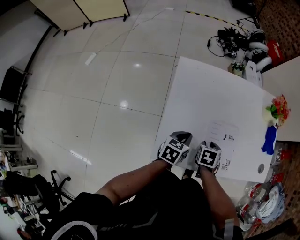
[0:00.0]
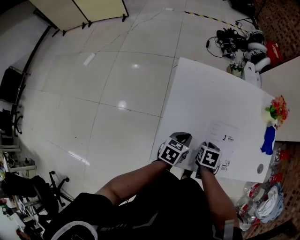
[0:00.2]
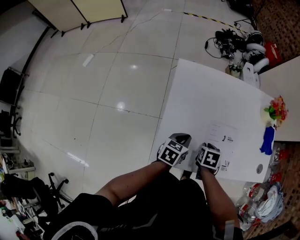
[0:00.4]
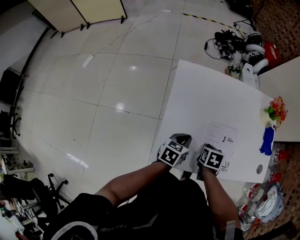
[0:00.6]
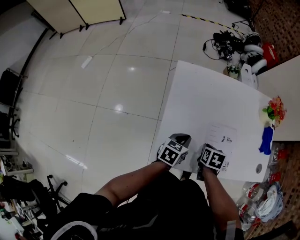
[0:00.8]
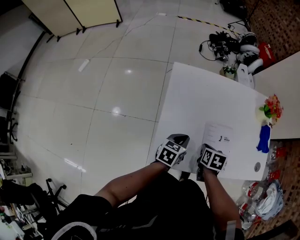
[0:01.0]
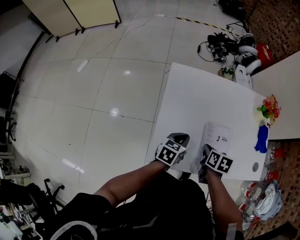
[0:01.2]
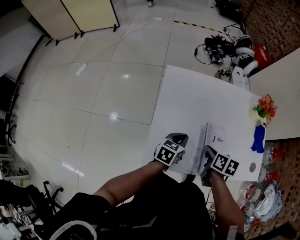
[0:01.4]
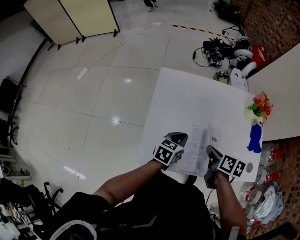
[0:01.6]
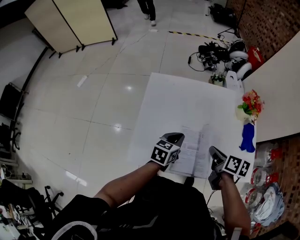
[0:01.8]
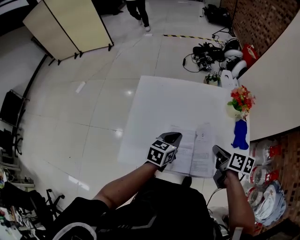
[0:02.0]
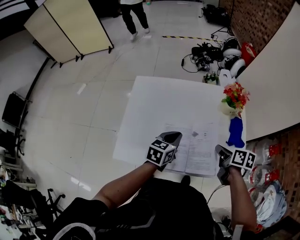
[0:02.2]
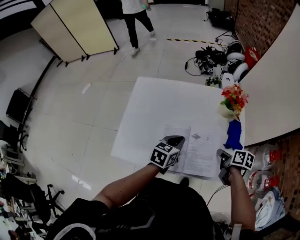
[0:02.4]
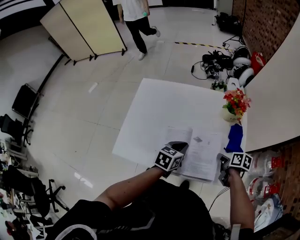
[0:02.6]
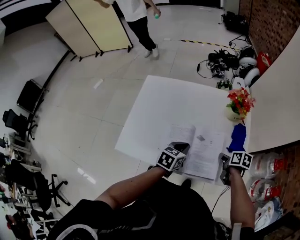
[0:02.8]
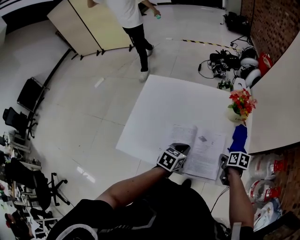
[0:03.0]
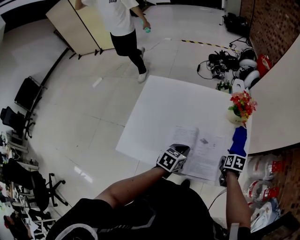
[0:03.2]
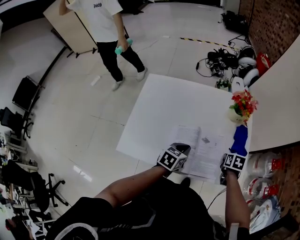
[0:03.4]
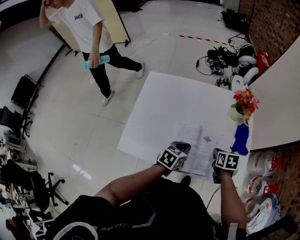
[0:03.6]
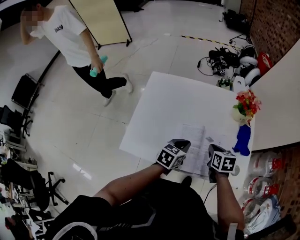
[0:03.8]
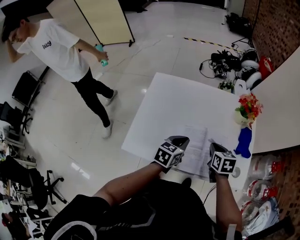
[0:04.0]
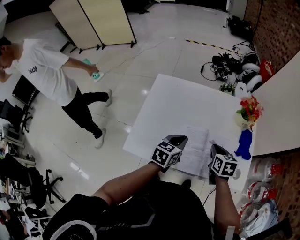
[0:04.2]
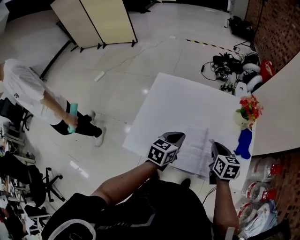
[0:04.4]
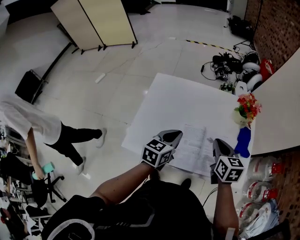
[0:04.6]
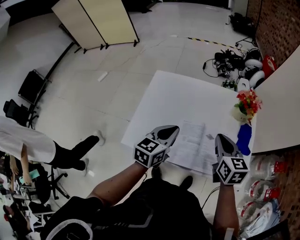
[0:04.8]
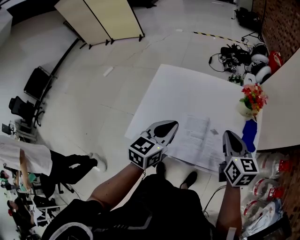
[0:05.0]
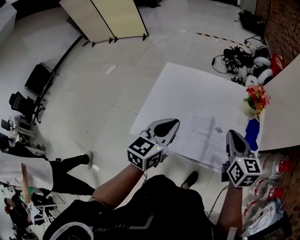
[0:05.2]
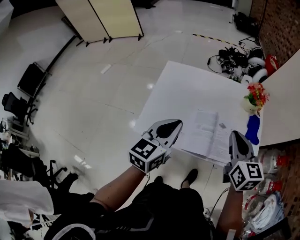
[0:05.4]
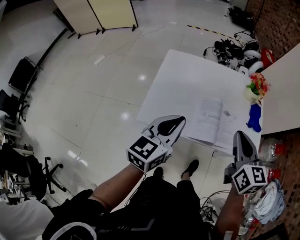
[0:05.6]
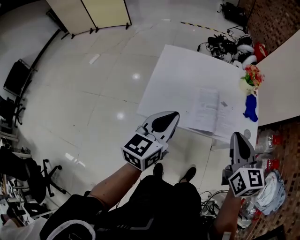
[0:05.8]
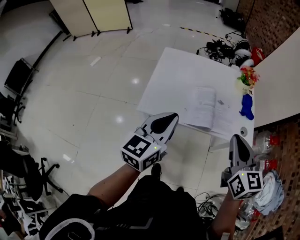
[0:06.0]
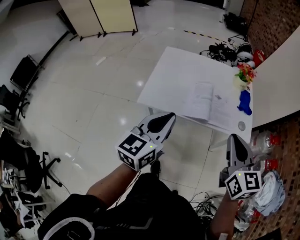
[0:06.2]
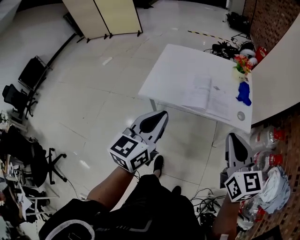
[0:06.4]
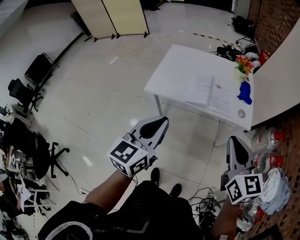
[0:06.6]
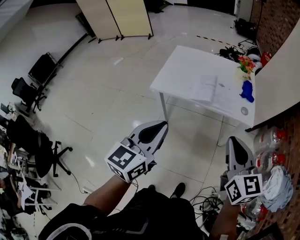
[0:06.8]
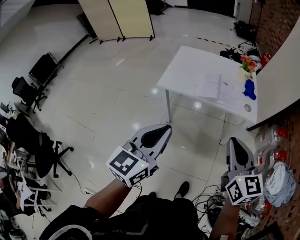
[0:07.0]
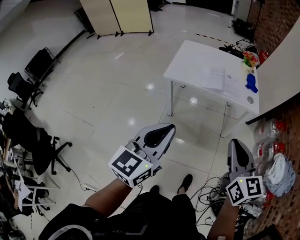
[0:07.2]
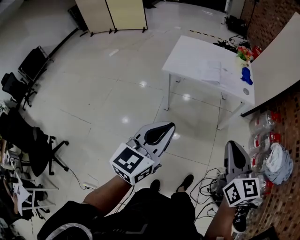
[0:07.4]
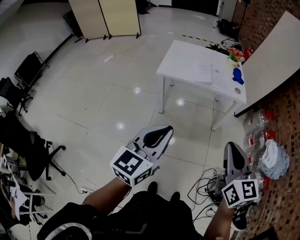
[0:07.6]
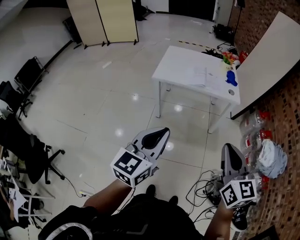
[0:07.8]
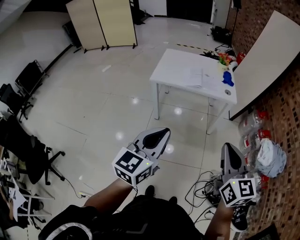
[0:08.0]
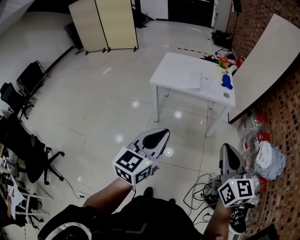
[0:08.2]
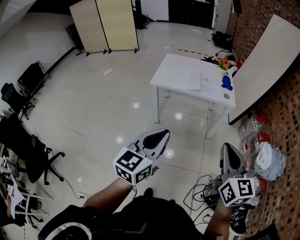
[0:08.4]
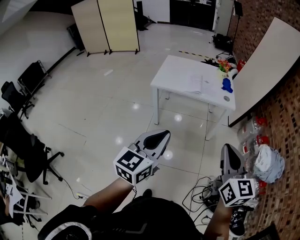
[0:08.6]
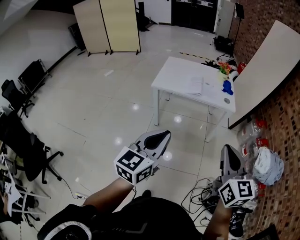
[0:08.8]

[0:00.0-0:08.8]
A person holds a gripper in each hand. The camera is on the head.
0:00.0 to 0:01.4: The right gripper goes roughly 10 cm upward, swivels approximately 30 degrees, and closes its fingers.
0:01.4 to 0:03.0: Both grippers move to the right, approximately 30 cm.
0:03.0 to 0:04.4: The left gripper heads to the left and upward, covering roughly 15 cm. Meanwhile the right gripper is displaced to the left and upward by some 20 cm, and turns by approximately 30 degrees.
0:04.4 to 0:05.8: The left gripper travels backward, upward and to the left by about 25 cm, and changes its angle by about 20 degrees, while the right gripper moves backward and upward, about 25 cm, and swivels approximately 20 degrees.
0:05.8 to 0:07.4: Both grippers are carried backward, some 50 cm.
0:07.4 to 0:08.8: The right gripper heads to the right, backward and upward, covering roughly 15 cm, while the left gripper is displaced to the right and backward by approximately 10 cm.

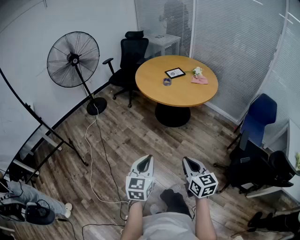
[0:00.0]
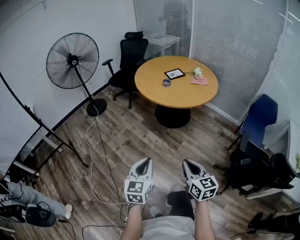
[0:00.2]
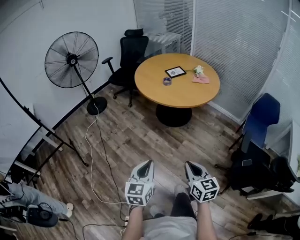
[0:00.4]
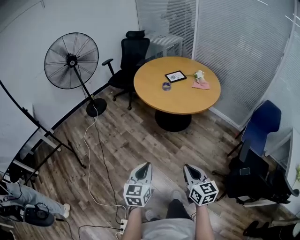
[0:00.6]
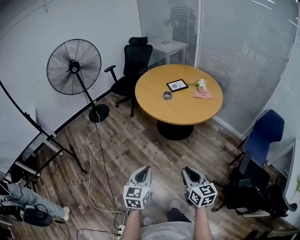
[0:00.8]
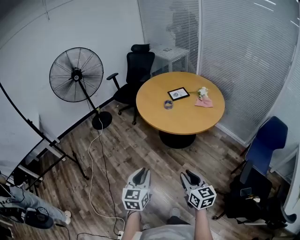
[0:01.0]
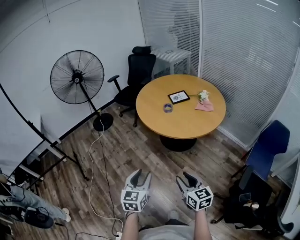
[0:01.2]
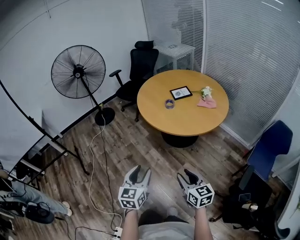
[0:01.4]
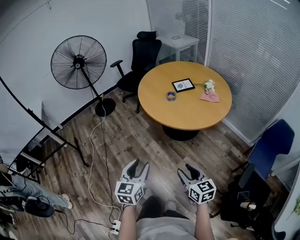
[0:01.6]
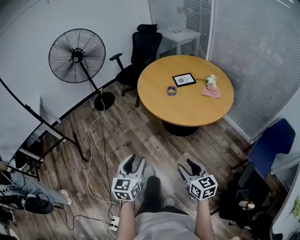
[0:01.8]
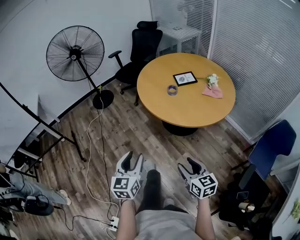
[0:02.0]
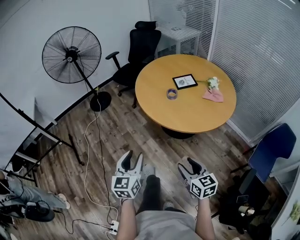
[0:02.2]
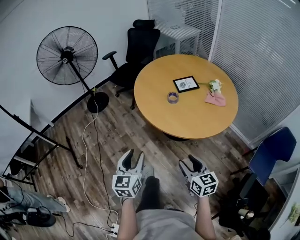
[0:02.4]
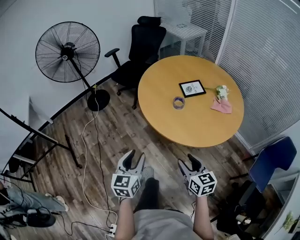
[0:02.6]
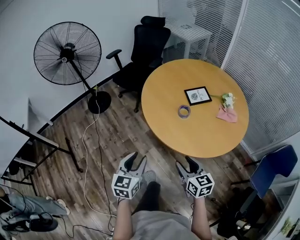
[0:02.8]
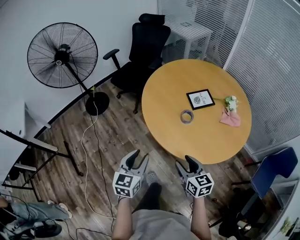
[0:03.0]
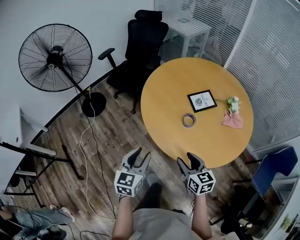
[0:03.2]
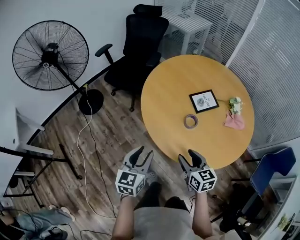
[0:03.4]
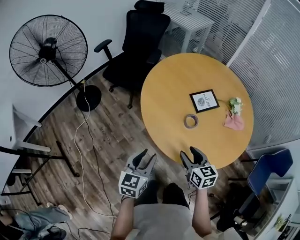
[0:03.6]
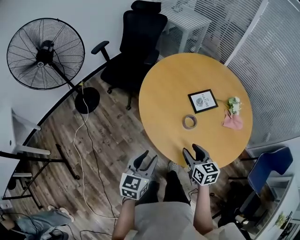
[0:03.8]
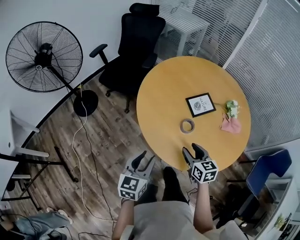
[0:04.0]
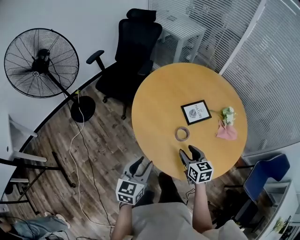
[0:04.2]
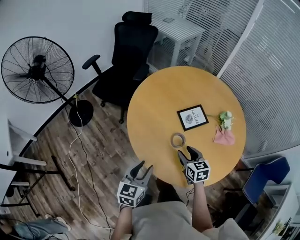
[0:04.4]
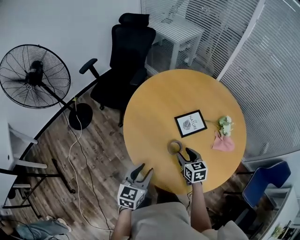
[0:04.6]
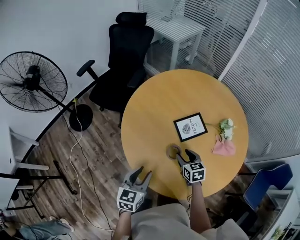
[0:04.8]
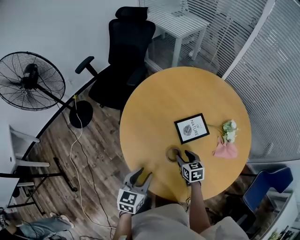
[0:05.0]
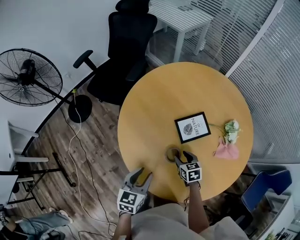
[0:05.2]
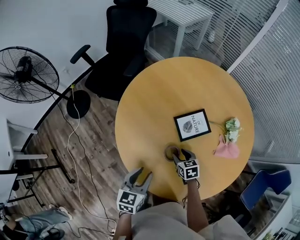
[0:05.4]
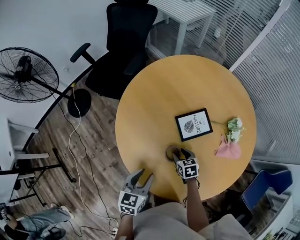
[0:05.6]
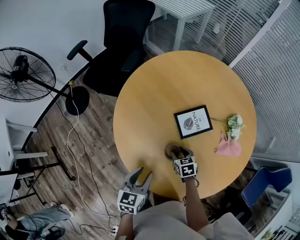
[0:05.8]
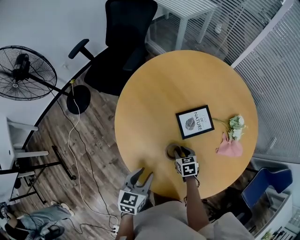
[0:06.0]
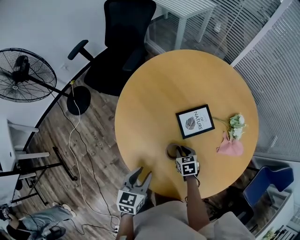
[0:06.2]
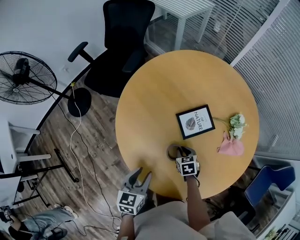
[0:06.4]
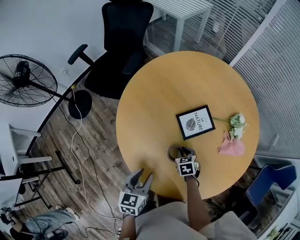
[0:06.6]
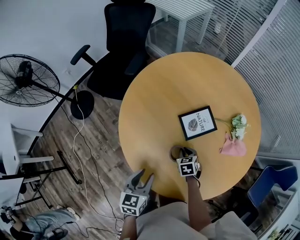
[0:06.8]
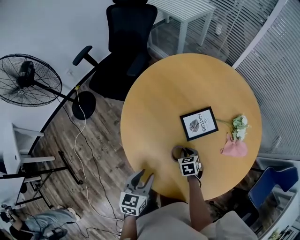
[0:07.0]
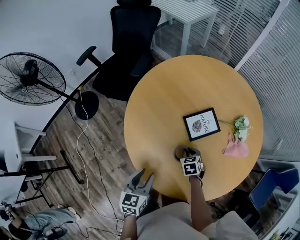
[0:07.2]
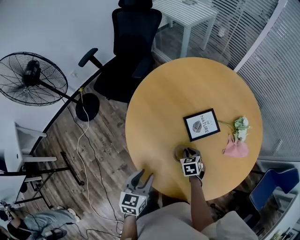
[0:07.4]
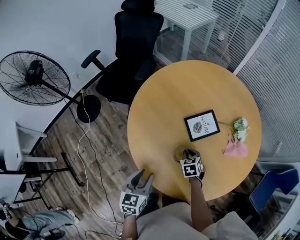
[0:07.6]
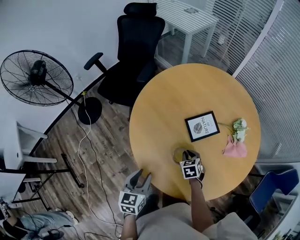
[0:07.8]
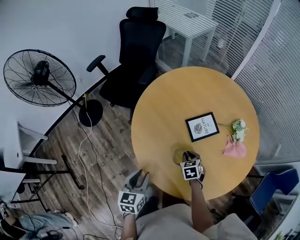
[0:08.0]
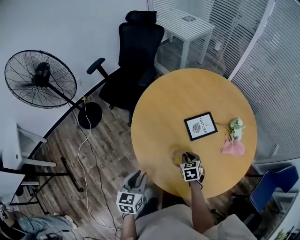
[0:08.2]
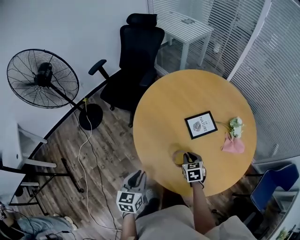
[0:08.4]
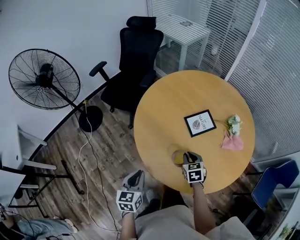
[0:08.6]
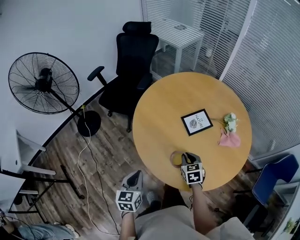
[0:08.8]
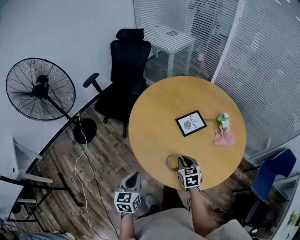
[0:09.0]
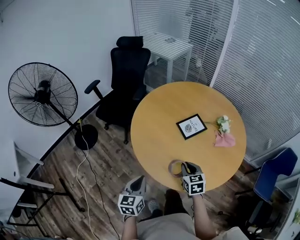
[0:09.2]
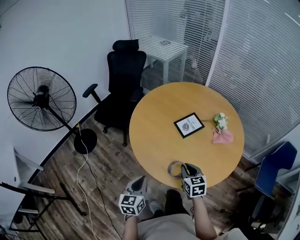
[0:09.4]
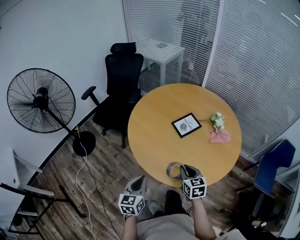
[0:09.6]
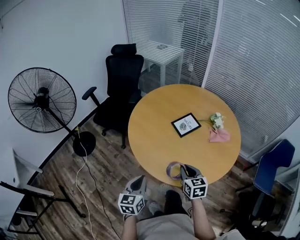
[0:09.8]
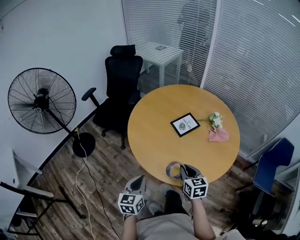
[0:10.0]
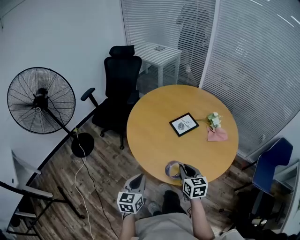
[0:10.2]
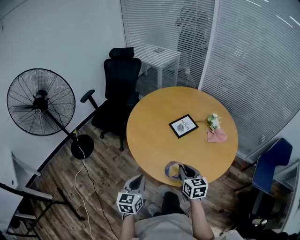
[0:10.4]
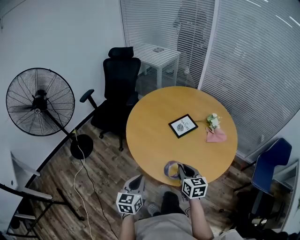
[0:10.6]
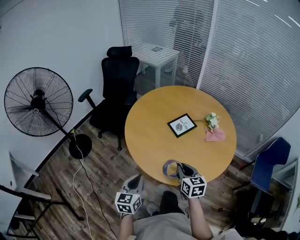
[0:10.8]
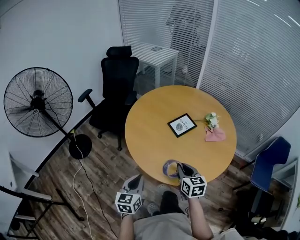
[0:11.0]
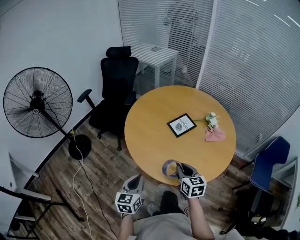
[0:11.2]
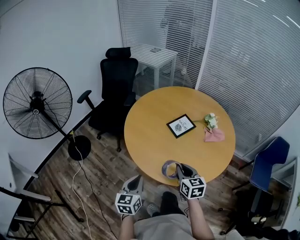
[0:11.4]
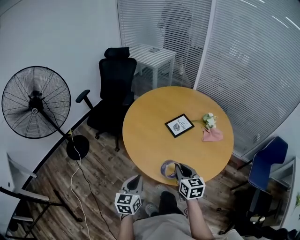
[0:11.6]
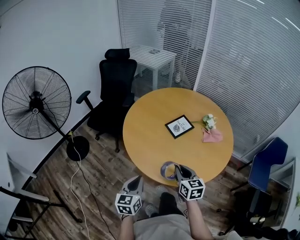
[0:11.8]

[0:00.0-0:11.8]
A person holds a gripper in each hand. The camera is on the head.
0:00.0 to 0:01.4: Both grippers travel together forward and to the right, approximately 25 cm. The right gripper opens up. Meanwhile the left gripper opens its fingers.
0:01.4 to 0:03.0: Both grippers are carried forward, roughly 40 cm.
0:03.0 to 0:04.4: The left gripper travels forward by approximately 15 cm, while the right gripper heads forward, covering roughly 25 cm.
0:04.4 to 0:06.0: The left gripper travels downward, forward and to the right by roughly 15 cm. The right gripper heads downward and forward, covering some 20 cm, and turns by approximately 20 degrees.
0:06.0 to 0:07.4: The right gripper closes.
0:07.4 to 0:08.8: The right gripper travels upward and backward by approximately 15 cm. The left gripper heads backward and to the left, covering about 15 cm, and closes its fingers.
0:08.8 to 0:10.4: The right gripper goes approximately 15 cm backward and upward, and rotates approximately 20 degrees. The left gripper heads backward, covering roughly 5 cm.
0:10.4 to 0:11.8: The grippers make only small movements.

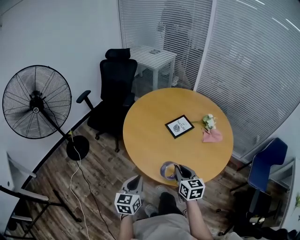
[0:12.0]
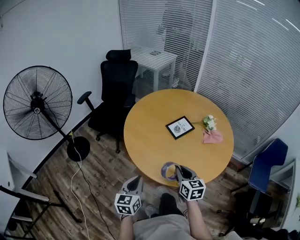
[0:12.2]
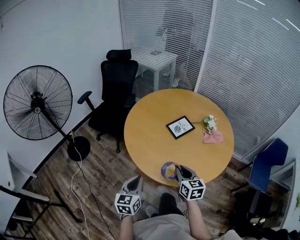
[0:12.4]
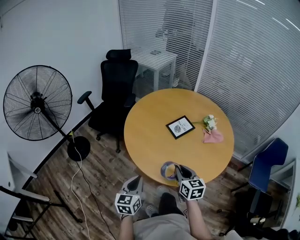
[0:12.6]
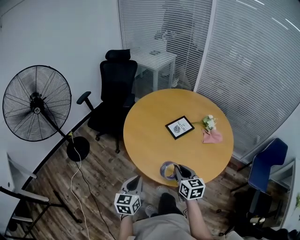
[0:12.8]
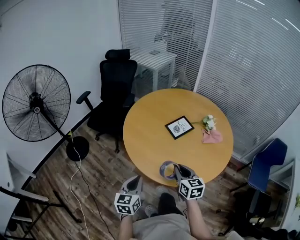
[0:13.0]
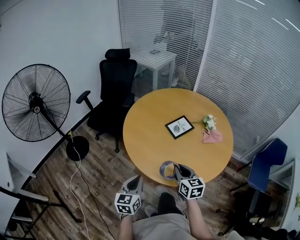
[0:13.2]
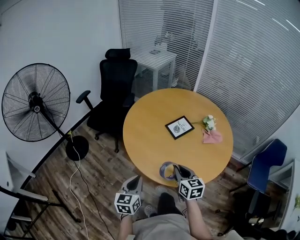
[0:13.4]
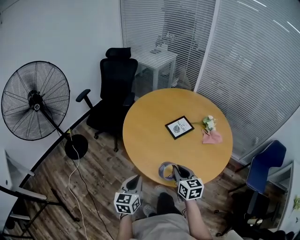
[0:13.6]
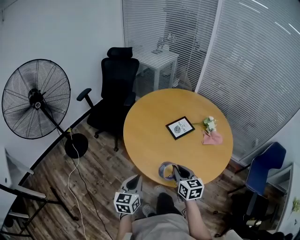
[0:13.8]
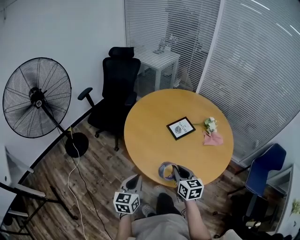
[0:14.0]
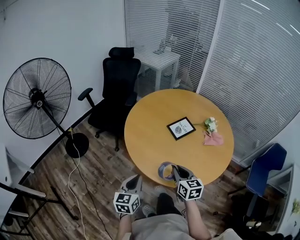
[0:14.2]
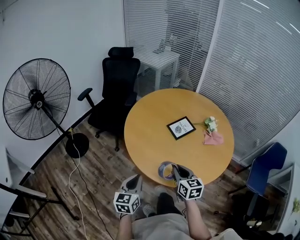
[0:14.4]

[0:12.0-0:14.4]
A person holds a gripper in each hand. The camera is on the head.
0:12.0 to 0:13.2: Both grippers stay put.
0:13.2 to 0:14.4: The grippers stay close to where they were, moving slightly.
